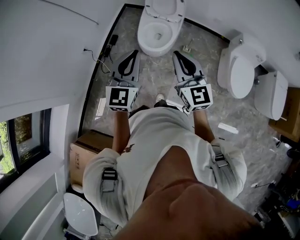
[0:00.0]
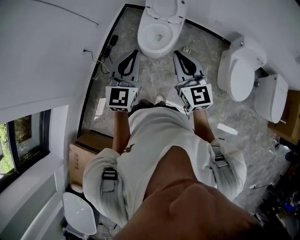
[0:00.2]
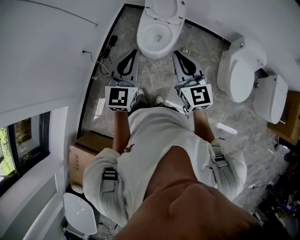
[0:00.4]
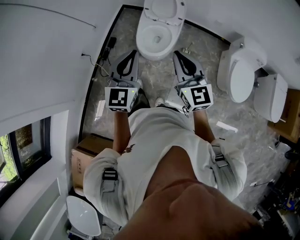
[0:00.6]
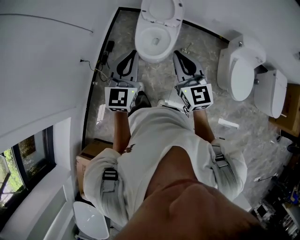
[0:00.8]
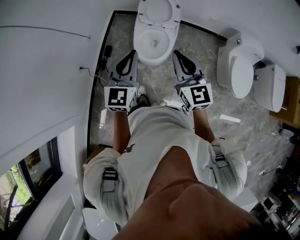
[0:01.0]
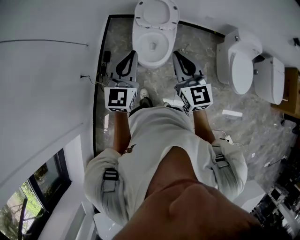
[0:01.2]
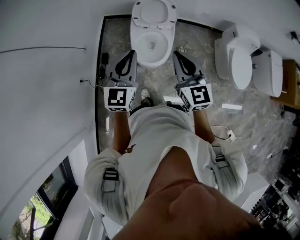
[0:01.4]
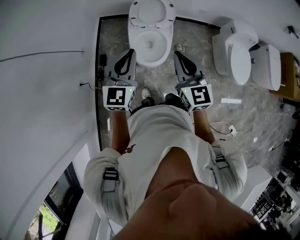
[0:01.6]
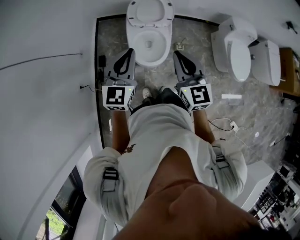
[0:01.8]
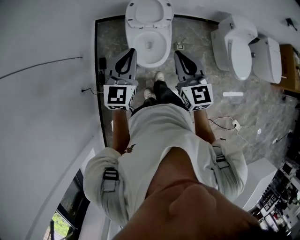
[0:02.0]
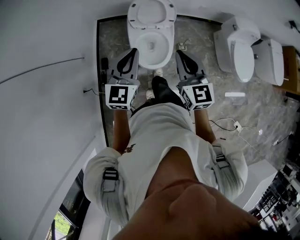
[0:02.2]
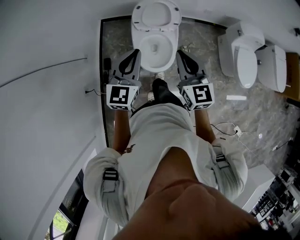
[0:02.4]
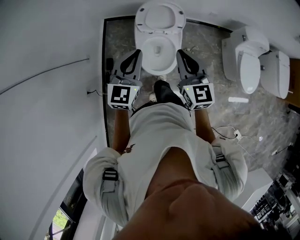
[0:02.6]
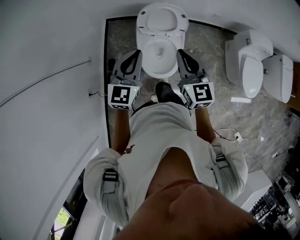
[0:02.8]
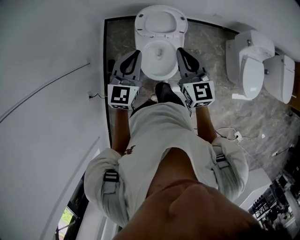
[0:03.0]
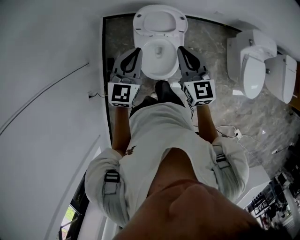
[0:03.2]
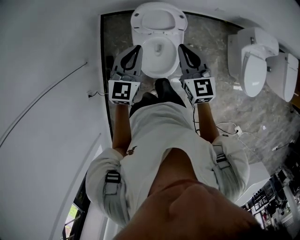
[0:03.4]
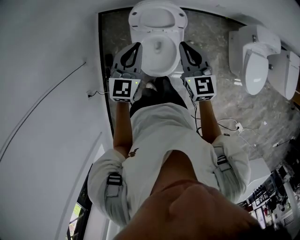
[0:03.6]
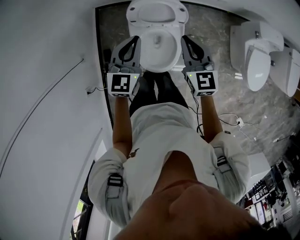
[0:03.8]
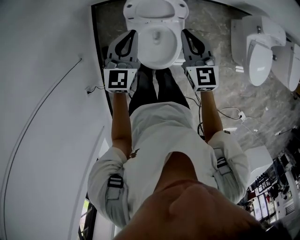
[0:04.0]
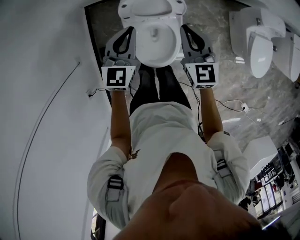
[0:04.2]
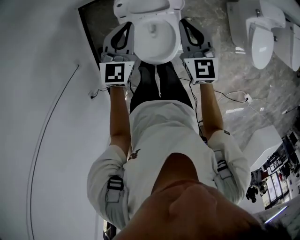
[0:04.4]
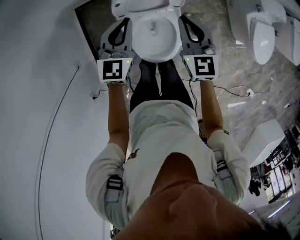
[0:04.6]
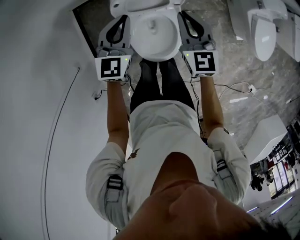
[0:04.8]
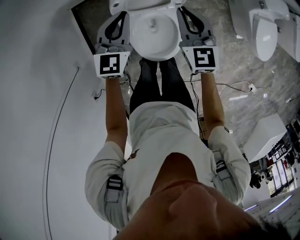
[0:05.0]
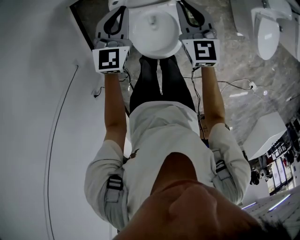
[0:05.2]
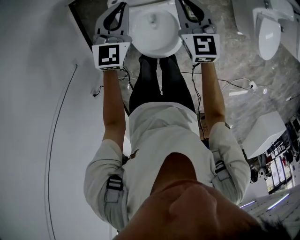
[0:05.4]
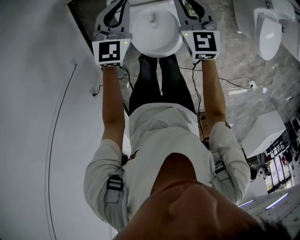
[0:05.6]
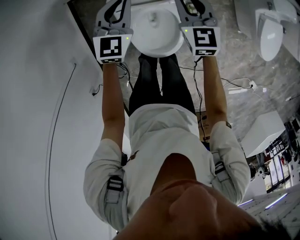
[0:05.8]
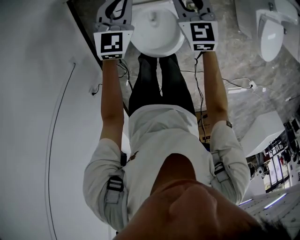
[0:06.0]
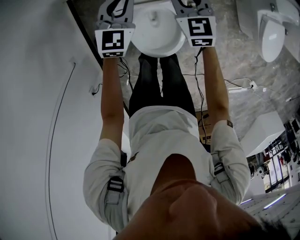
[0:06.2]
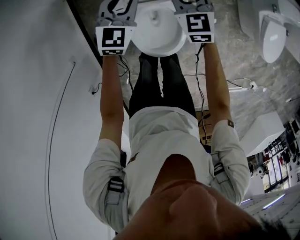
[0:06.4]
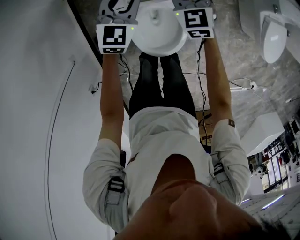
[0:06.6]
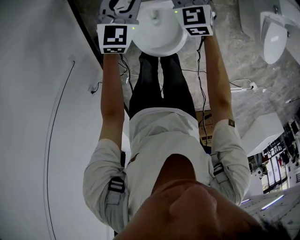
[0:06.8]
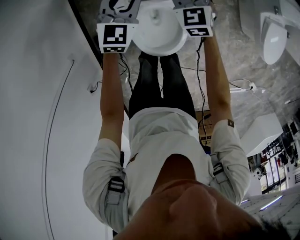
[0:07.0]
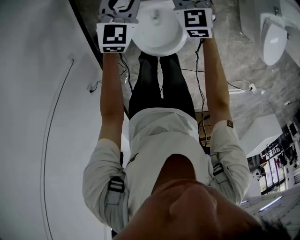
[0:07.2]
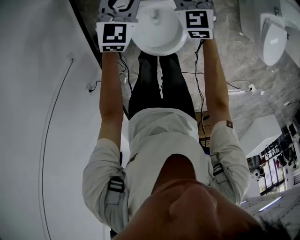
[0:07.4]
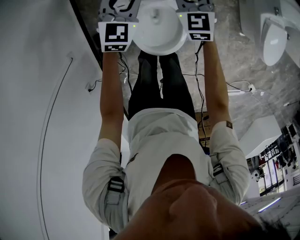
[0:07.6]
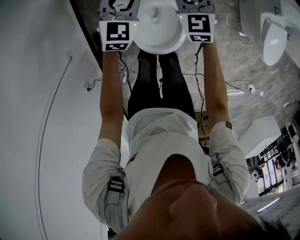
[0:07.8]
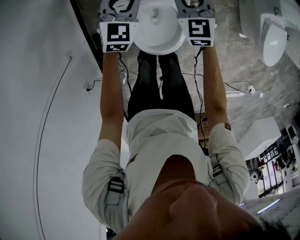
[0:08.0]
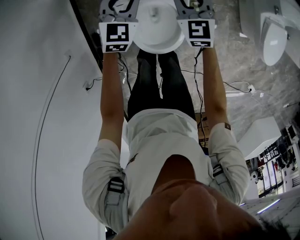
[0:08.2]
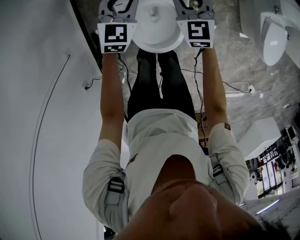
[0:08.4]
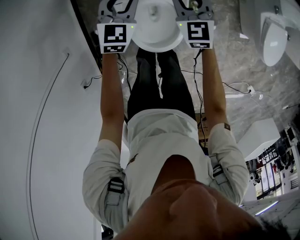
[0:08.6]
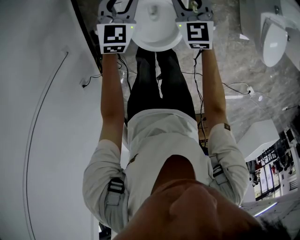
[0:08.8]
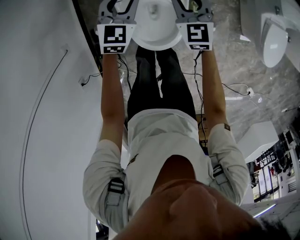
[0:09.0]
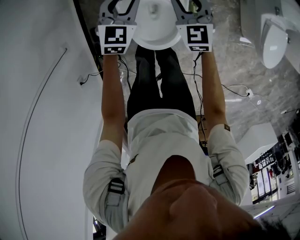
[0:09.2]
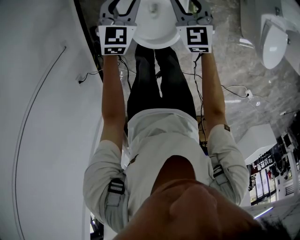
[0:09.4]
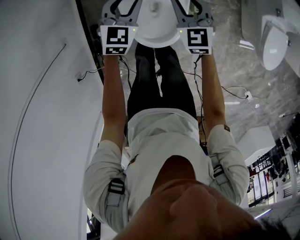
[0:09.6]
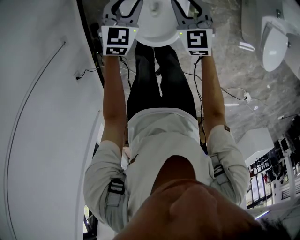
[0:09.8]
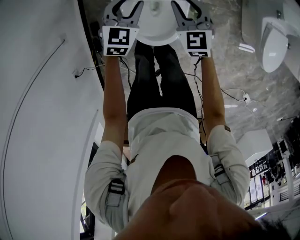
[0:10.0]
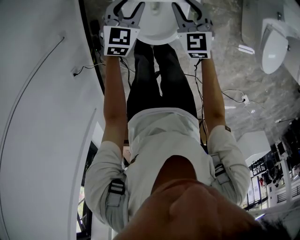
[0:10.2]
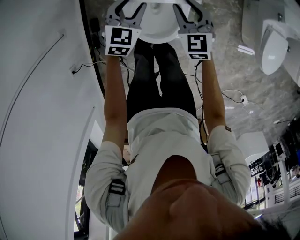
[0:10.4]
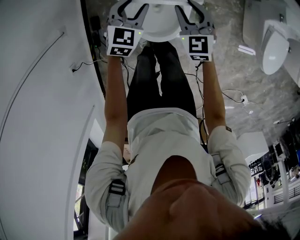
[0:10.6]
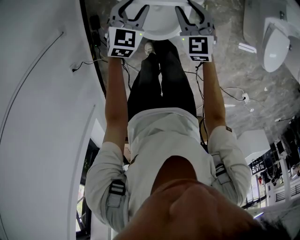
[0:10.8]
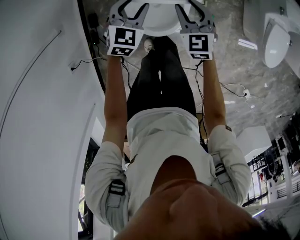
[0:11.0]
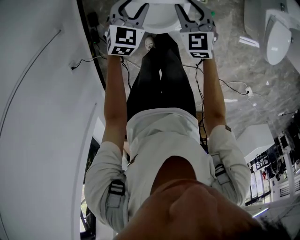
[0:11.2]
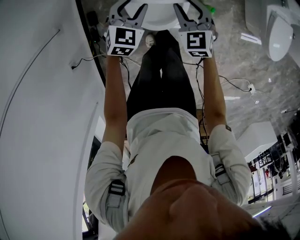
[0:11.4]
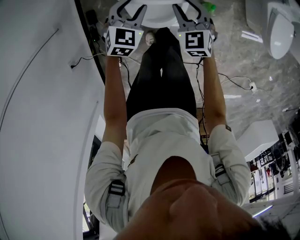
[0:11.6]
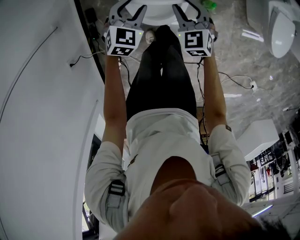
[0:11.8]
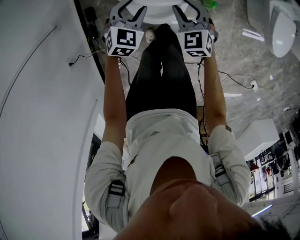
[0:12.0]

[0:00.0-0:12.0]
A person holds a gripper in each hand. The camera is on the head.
0:00.0 to 0:01.6: Both grippers travel together forward and to the left, approximately 25 cm. The right gripper changes its angle by roughly 20 degrees.
0:01.6 to 0:03.0: The two grippers go roughly 25 cm forward.
0:03.0 to 0:04.4: The two grippers go some 25 cm forward and downward.
0:04.4 to 0:06.0: Both grippers travel together forward and downward, approximately 15 cm. The right gripper opens up.
0:06.0 to 0:07.6: The left gripper opens its fingers.
0:07.6 to 0:09.0: Both grippers travel together backward, roughly 10 cm.
0:09.0 to 0:10.4: Both grippers move backward, approximately 10 cm.
0:10.4 to 0:12.0: Both grippers travel together backward and downward, roughly 15 cm.

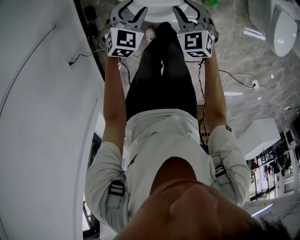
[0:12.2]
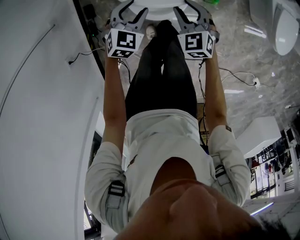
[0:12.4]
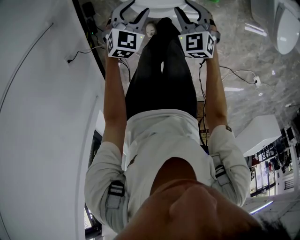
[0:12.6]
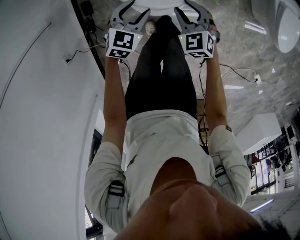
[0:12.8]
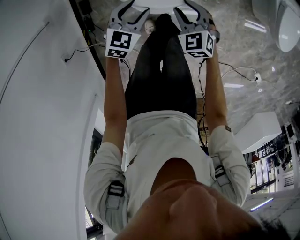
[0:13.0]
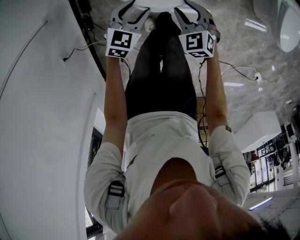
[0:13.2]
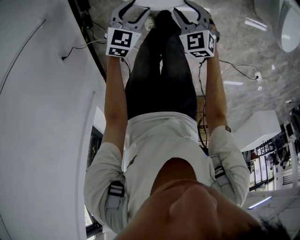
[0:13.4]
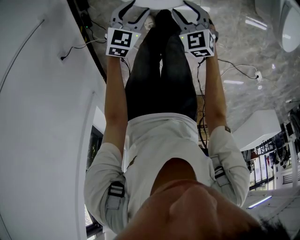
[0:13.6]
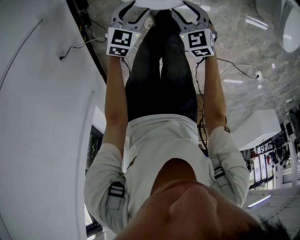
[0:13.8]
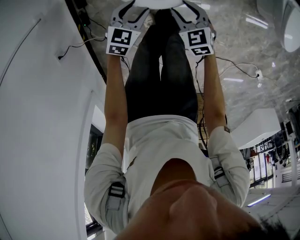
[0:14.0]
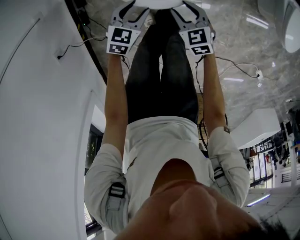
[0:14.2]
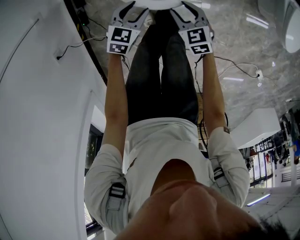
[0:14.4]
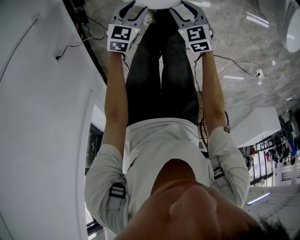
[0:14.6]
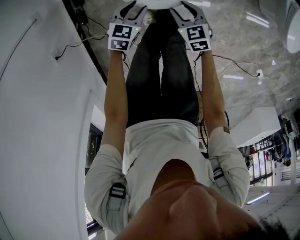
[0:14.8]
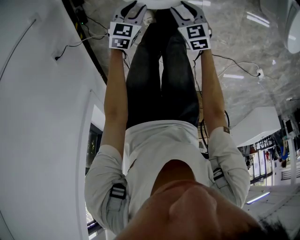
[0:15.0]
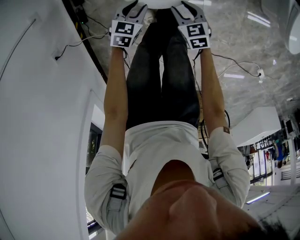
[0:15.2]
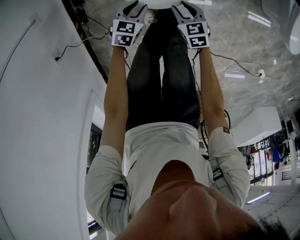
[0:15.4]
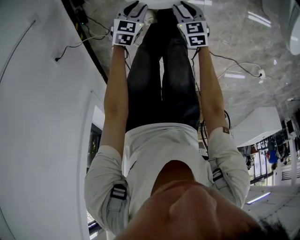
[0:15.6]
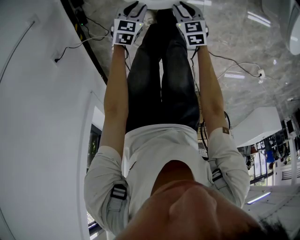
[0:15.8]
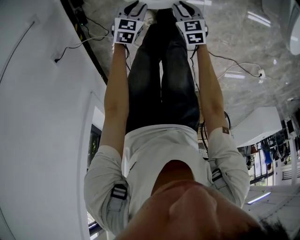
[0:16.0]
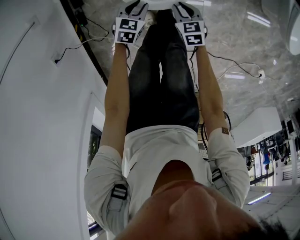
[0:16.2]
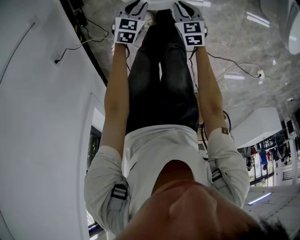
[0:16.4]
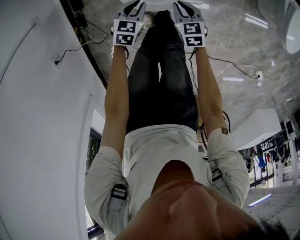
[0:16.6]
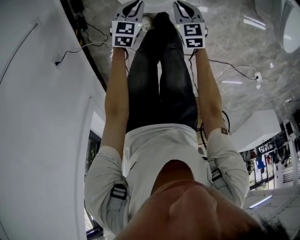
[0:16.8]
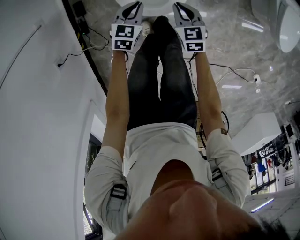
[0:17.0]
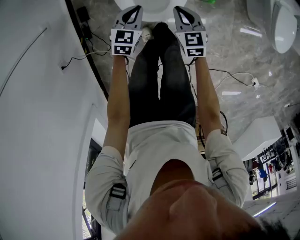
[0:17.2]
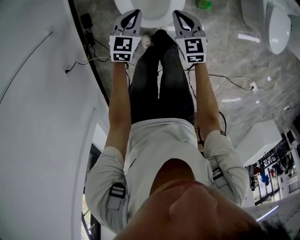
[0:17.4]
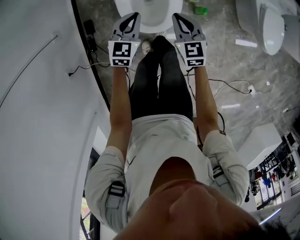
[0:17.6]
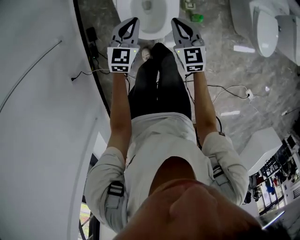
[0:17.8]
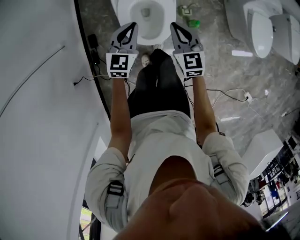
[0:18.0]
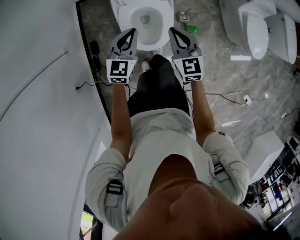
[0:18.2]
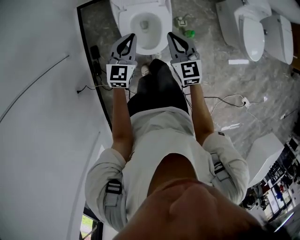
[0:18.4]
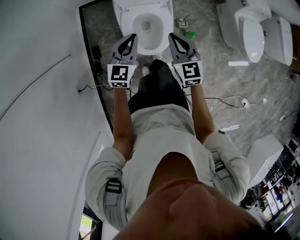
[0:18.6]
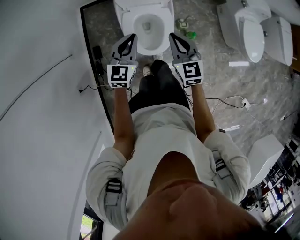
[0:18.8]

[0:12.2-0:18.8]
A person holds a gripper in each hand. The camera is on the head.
0:12.2 to 0:13.8: Both grippers move downward and backward, some 15 cm.
0:13.8 to 0:15.4: The two grippers go approximately 10 cm downward.
0:15.4 to 0:17.2: Both grippers move upward and forward, about 15 cm. The right gripper closes. Meanwhile the left gripper closes up.
0:17.2 to 0:18.8: Both grippers move upward, about 30 cm. The left gripper changes its angle by approximately 20 degrees.

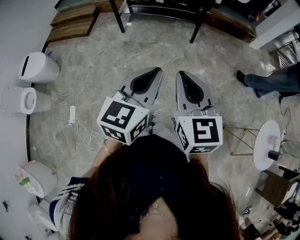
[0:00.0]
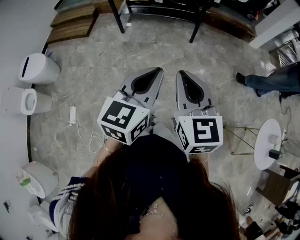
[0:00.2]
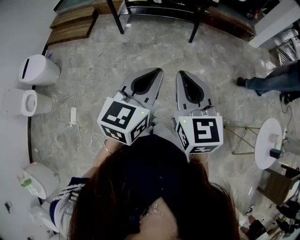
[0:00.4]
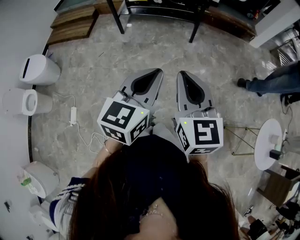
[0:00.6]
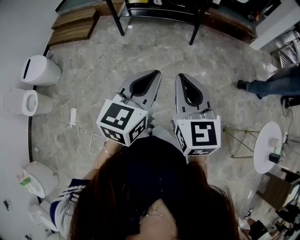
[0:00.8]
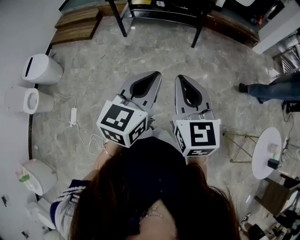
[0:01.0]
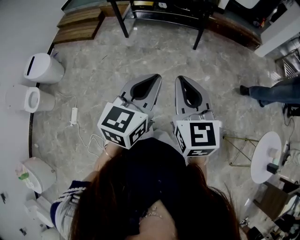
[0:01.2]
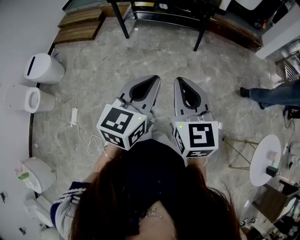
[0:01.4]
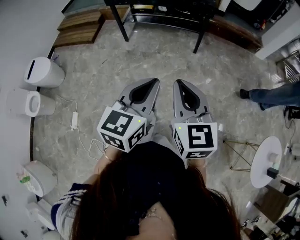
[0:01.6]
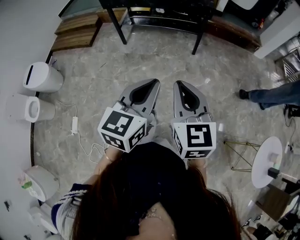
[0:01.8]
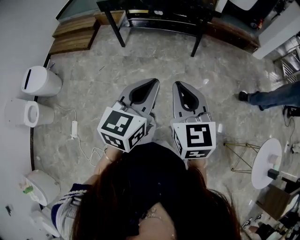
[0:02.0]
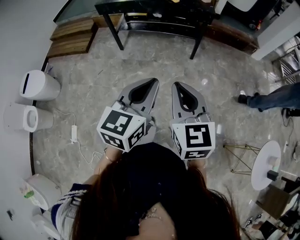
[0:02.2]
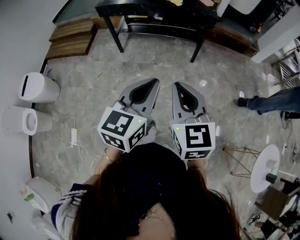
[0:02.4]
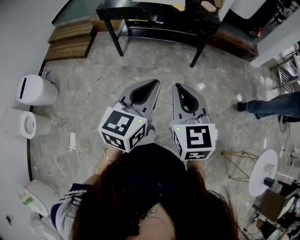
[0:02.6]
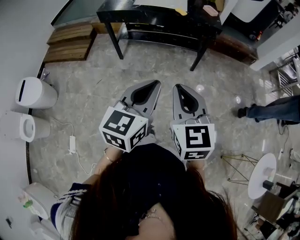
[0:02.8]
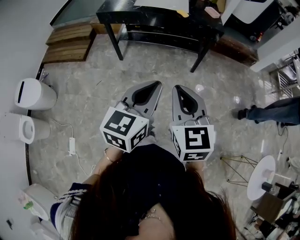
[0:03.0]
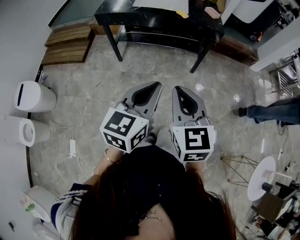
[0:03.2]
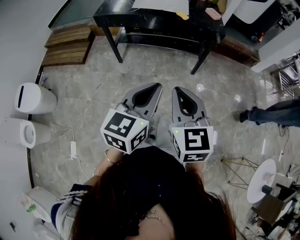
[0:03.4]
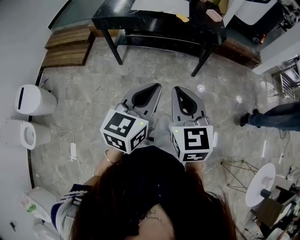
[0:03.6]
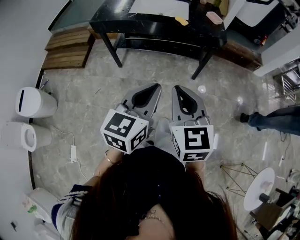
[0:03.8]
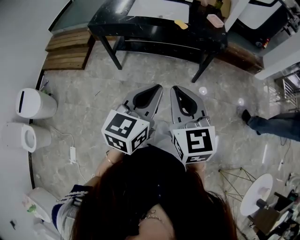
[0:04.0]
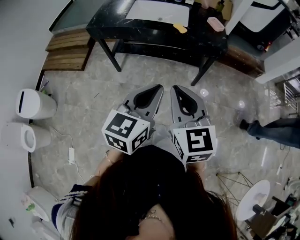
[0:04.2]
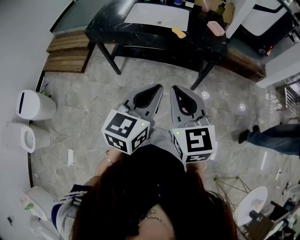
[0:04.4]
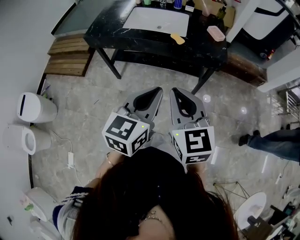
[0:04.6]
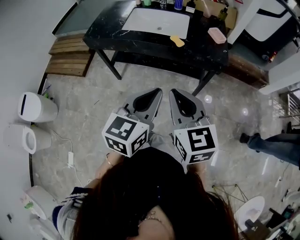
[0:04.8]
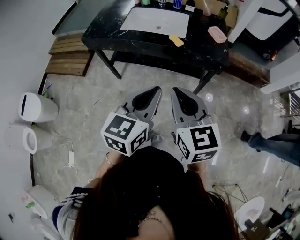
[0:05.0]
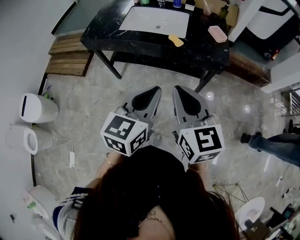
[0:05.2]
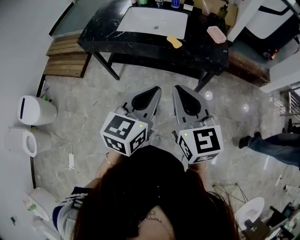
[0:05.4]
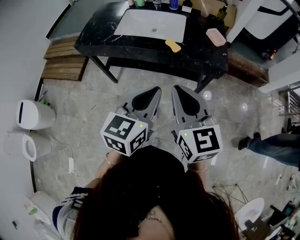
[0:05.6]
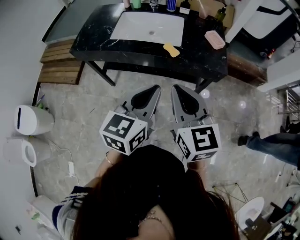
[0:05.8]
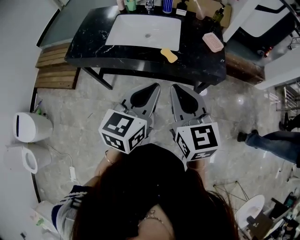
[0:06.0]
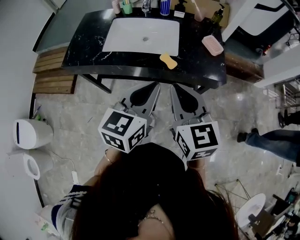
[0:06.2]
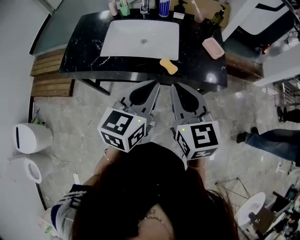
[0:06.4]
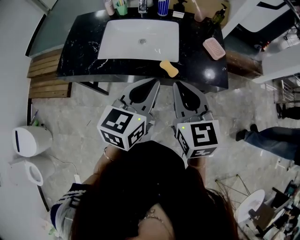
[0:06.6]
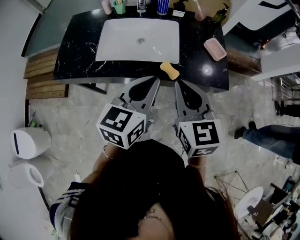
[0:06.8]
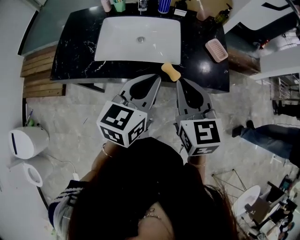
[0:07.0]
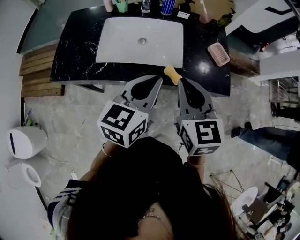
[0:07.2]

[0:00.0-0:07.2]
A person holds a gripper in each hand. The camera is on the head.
0:00.0 to 0:01.4: Both grippers travel together to the right, roughly 5 cm.
0:01.4 to 0:02.8: The two grippers go about 25 cm forward and to the left.
0:02.8 to 0:04.4: Both grippers travel together forward, some 25 cm.
0:04.4 to 0:05.8: The grippers both shift forward by approximately 20 cm.
0:05.8 to 0:07.2: Both grippers move forward, some 20 cm.
